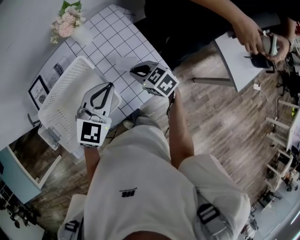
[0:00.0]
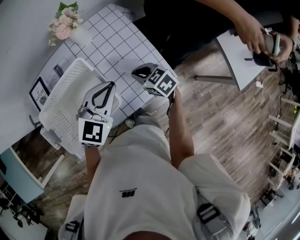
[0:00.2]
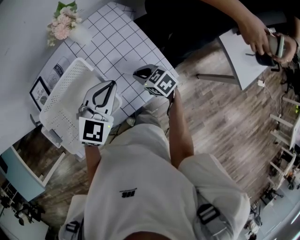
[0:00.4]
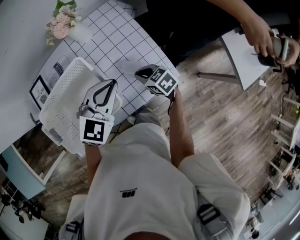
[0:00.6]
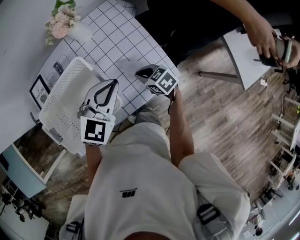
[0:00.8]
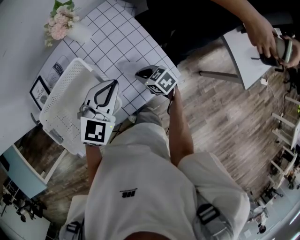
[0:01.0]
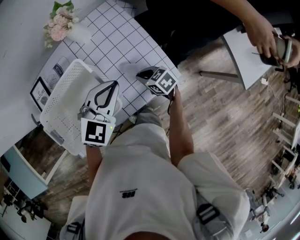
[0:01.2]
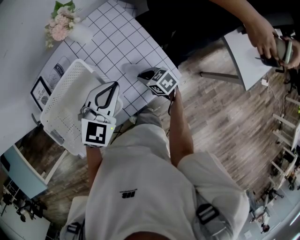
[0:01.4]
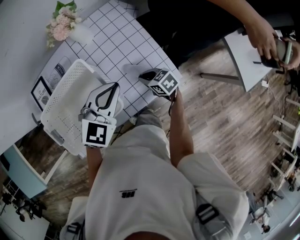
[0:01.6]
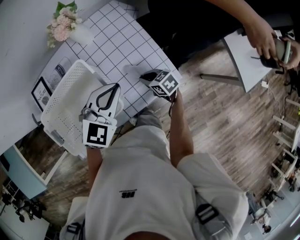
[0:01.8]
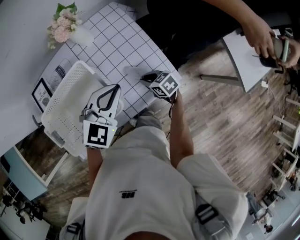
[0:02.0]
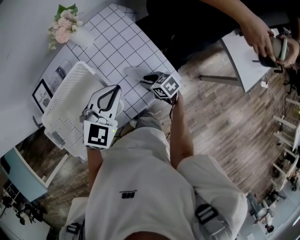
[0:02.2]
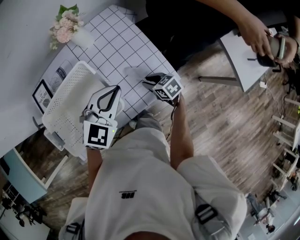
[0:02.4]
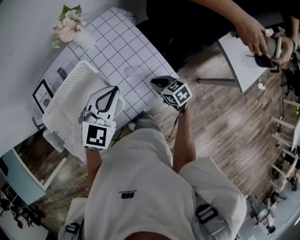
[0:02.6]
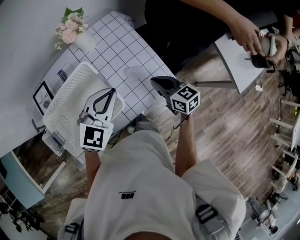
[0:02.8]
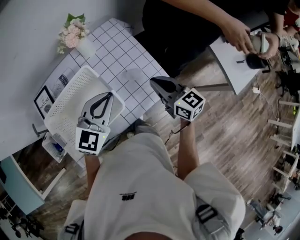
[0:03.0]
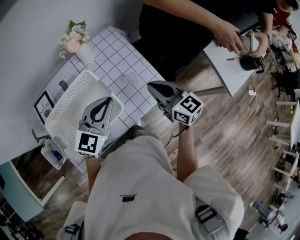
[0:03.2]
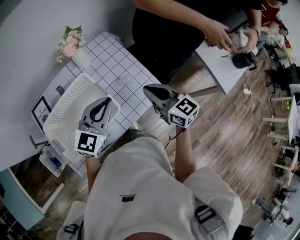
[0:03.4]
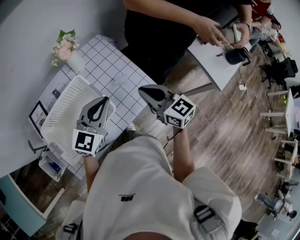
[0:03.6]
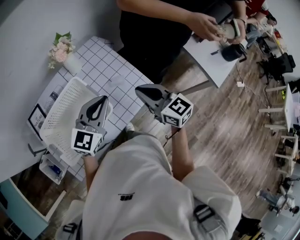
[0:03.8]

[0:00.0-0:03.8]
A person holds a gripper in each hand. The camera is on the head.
0:00.0 to 0:01.2: The right gripper shifts roughly 10 cm downward.
0:01.2 to 0:02.6: The right gripper shifts by roughly 5 cm.
0:02.6 to 0:03.8: The left gripper goes roughly 5 cm upward, and swivels roughly 20 degrees; the right gripper moves upward, roughly 25 cm, and angles its fingers upward, by roughly 30 degrees.

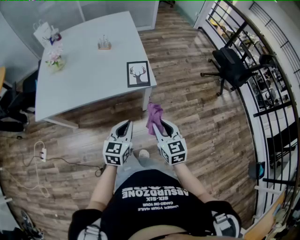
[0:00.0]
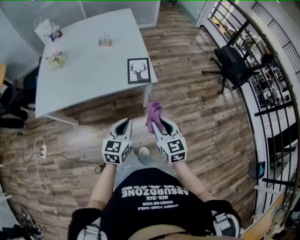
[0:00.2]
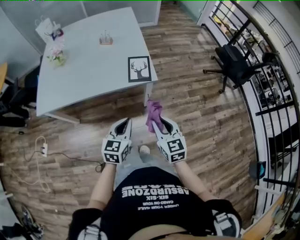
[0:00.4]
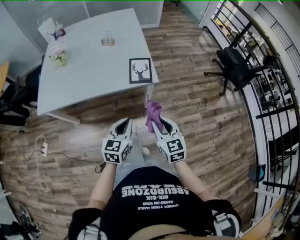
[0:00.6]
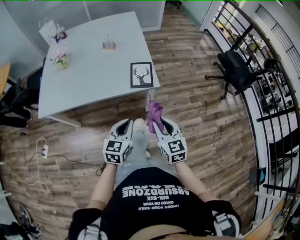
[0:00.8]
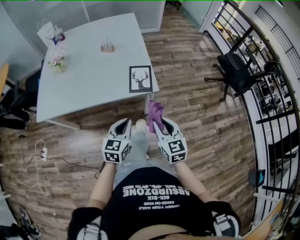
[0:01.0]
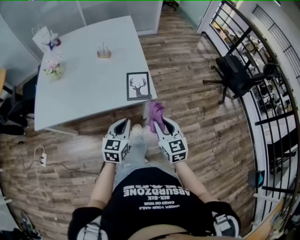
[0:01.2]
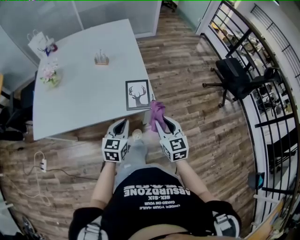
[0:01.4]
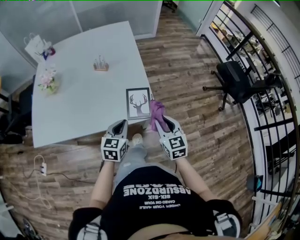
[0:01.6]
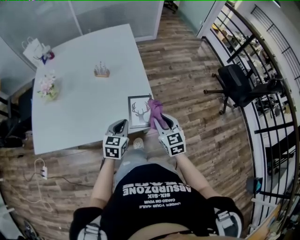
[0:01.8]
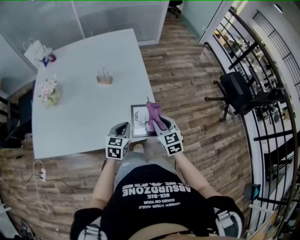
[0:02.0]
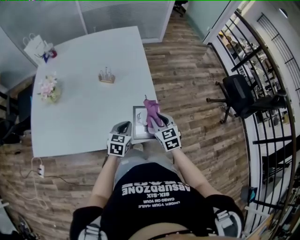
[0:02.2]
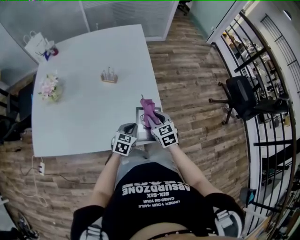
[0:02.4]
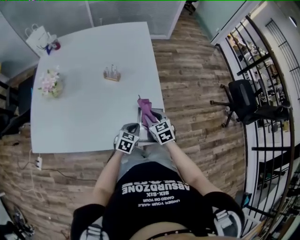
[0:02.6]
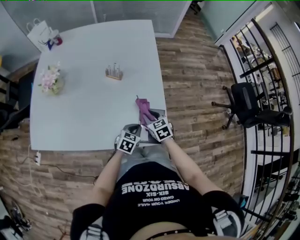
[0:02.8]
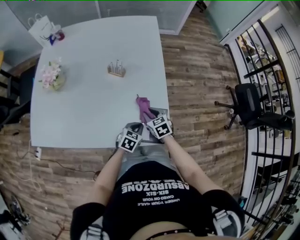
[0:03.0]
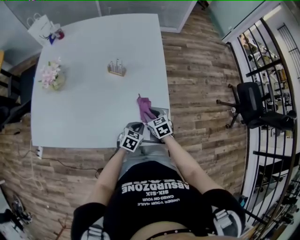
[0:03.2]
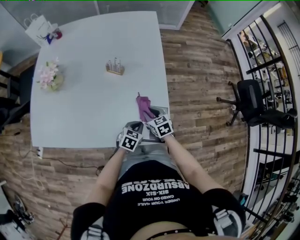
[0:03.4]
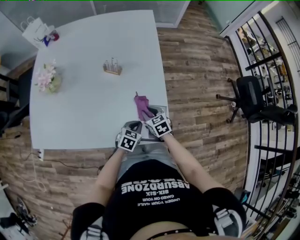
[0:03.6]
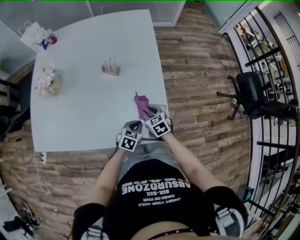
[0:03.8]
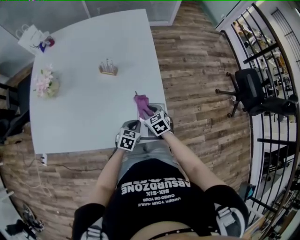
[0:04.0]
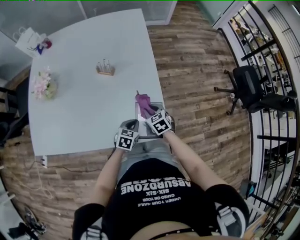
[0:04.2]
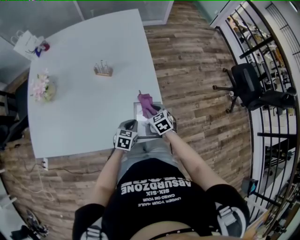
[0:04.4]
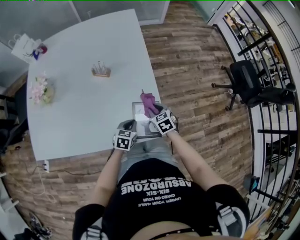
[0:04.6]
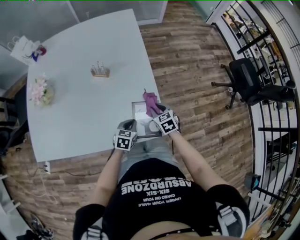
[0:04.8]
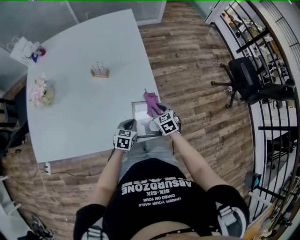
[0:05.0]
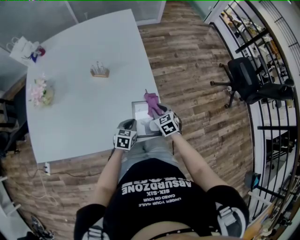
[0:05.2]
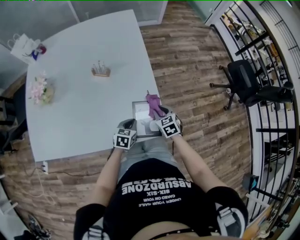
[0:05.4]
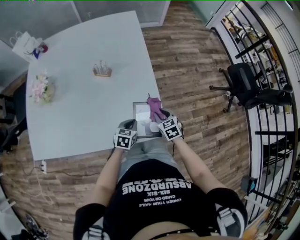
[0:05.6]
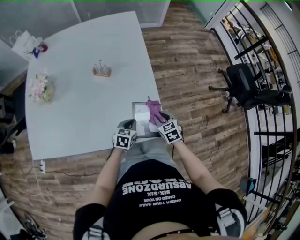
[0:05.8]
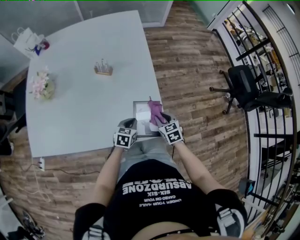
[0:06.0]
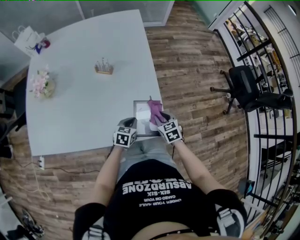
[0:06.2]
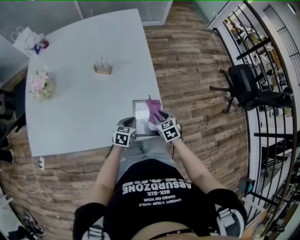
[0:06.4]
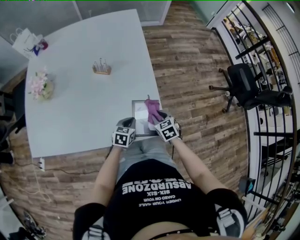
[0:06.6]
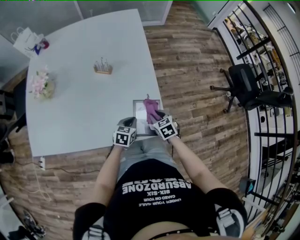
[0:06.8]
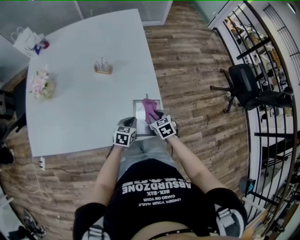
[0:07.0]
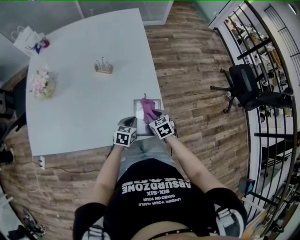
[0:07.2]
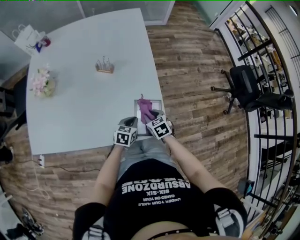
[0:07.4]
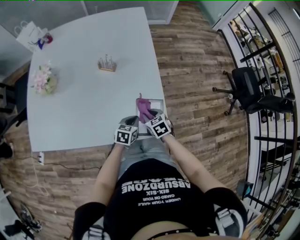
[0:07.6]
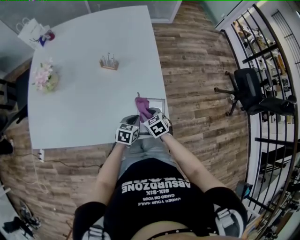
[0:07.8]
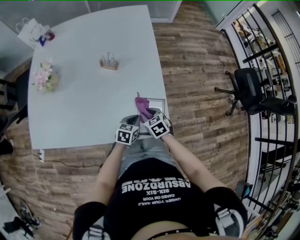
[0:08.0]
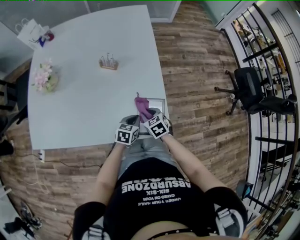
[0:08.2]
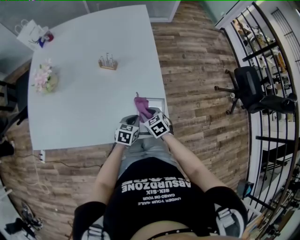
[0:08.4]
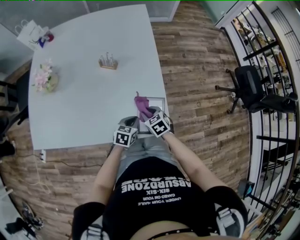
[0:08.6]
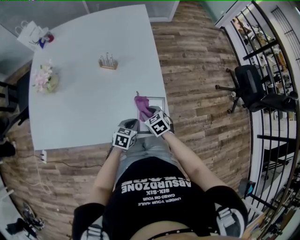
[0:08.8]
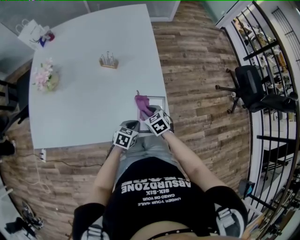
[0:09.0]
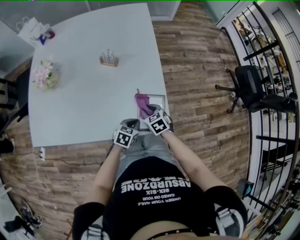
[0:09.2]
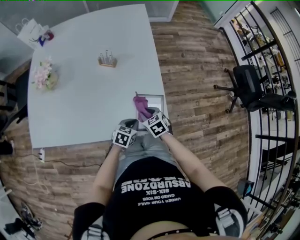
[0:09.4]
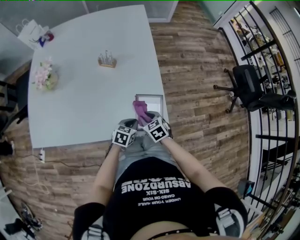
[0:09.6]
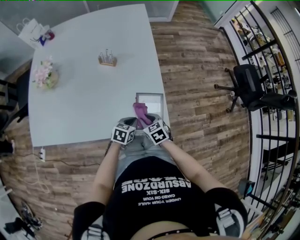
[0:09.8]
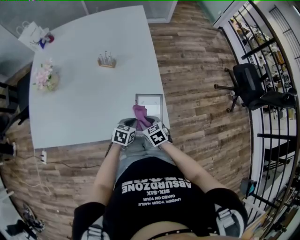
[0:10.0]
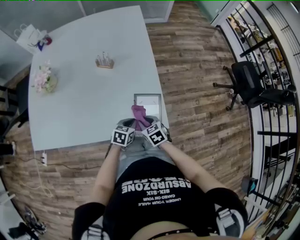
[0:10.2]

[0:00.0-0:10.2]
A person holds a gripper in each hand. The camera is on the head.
0:00.0 to 0:01.4: The two grippers go some 15 cm forward.
0:01.4 to 0:03.0: The left gripper is displaced forward and downward by some 25 cm, and rotates some 20 degrees. Meanwhile the right gripper is displaced forward, downward and to the left by roughly 35 cm, and rotates about 30 degrees.
0:03.0 to 0:04.4: The right gripper heads to the right, covering roughly 5 cm.
0:04.4 to 0:05.8: The right gripper moves to the right, approximately 5 cm.
0:05.8 to 0:07.2: The grippers move only a little.
0:07.2 to 0:08.8: The right gripper travels to the left by some 5 cm.
0:08.8 to 0:10.2: The right gripper travels backward by roughly 5 cm.

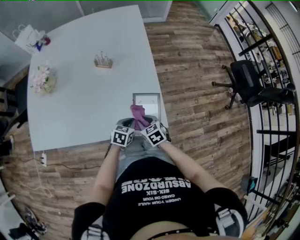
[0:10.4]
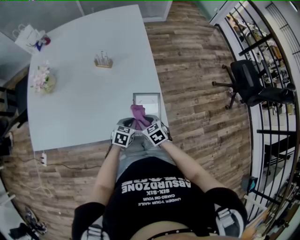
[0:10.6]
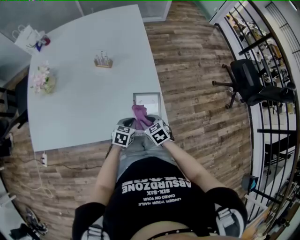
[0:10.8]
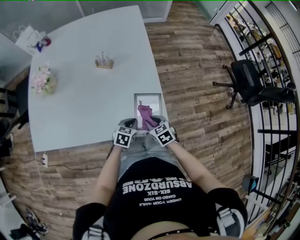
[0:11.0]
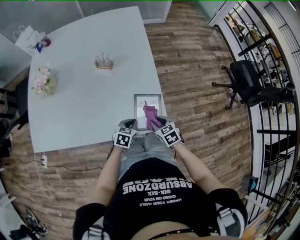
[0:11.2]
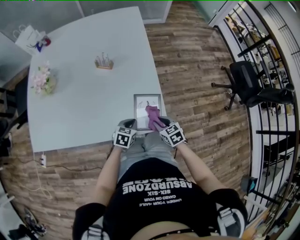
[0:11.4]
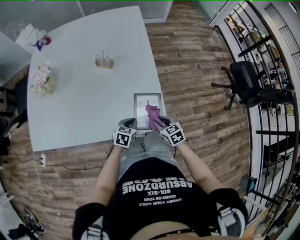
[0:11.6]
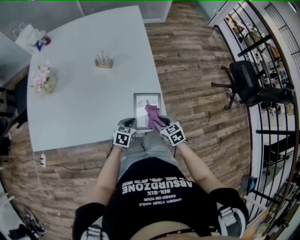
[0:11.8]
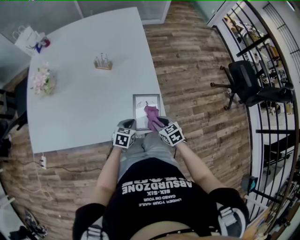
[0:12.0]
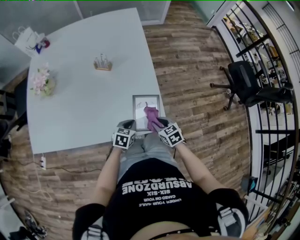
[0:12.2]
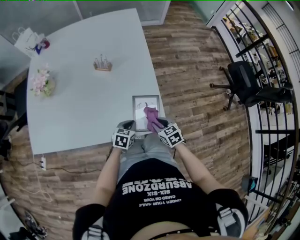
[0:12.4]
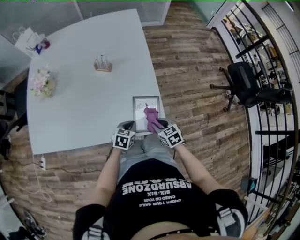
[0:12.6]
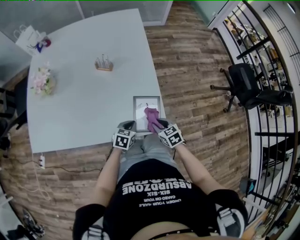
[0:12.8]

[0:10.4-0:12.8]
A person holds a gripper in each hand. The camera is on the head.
0:10.4 to 0:11.6: The right gripper heads to the right, covering roughly 10 cm.
0:11.6 to 0:12.8: Neither gripper changes place.

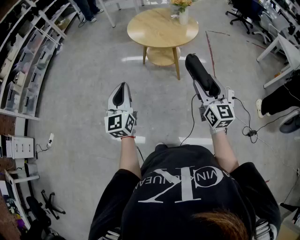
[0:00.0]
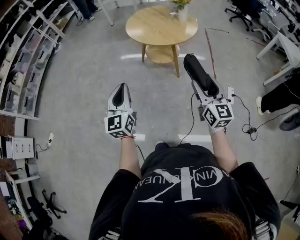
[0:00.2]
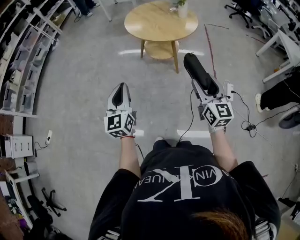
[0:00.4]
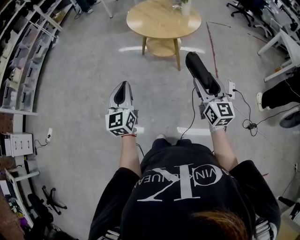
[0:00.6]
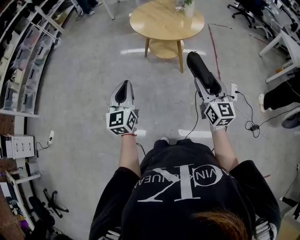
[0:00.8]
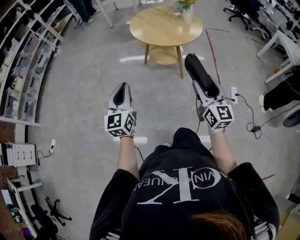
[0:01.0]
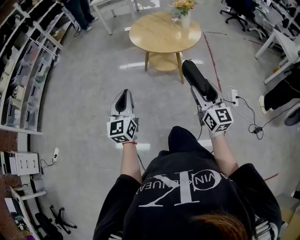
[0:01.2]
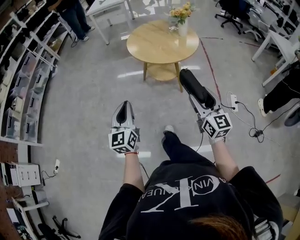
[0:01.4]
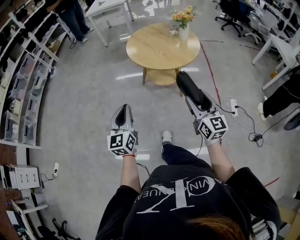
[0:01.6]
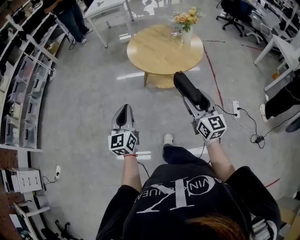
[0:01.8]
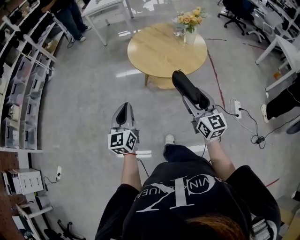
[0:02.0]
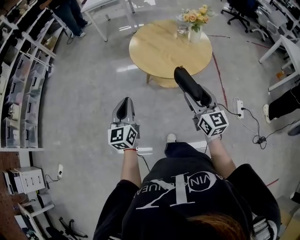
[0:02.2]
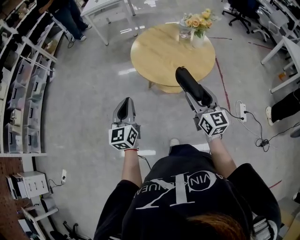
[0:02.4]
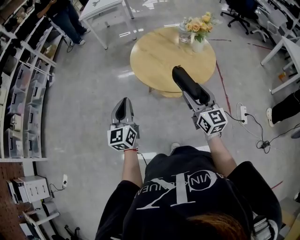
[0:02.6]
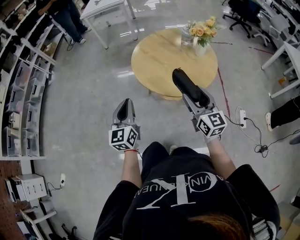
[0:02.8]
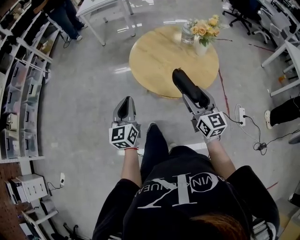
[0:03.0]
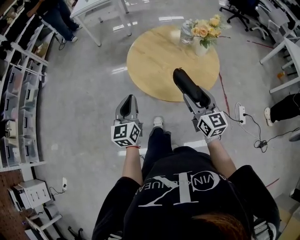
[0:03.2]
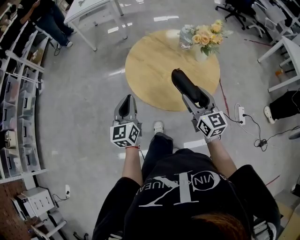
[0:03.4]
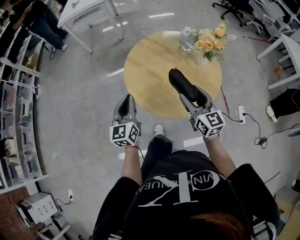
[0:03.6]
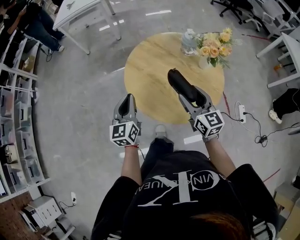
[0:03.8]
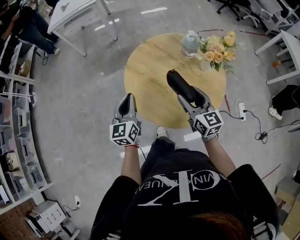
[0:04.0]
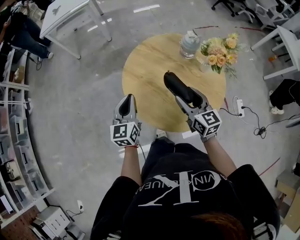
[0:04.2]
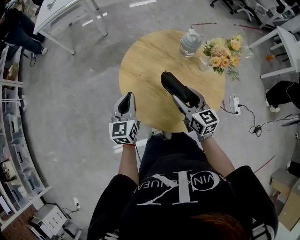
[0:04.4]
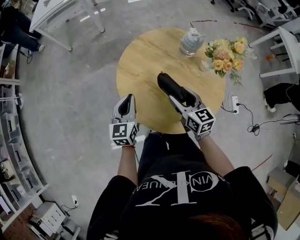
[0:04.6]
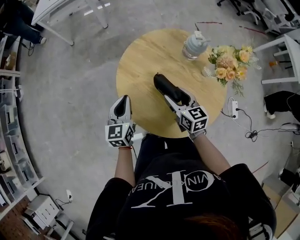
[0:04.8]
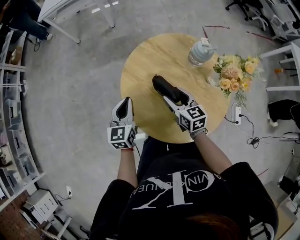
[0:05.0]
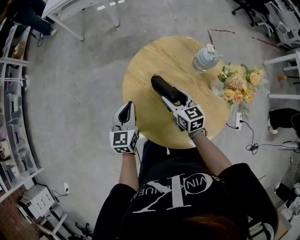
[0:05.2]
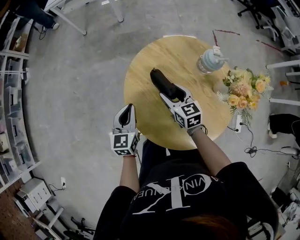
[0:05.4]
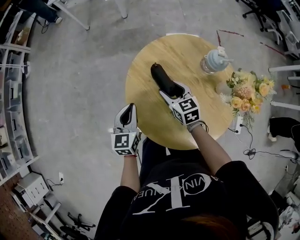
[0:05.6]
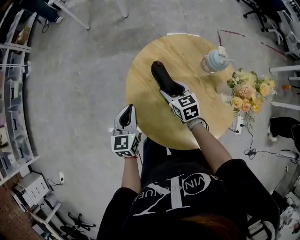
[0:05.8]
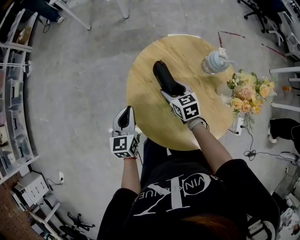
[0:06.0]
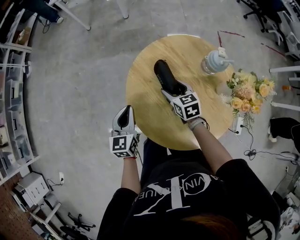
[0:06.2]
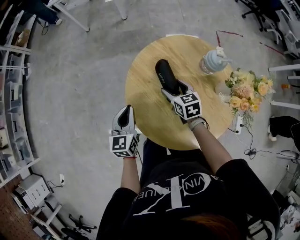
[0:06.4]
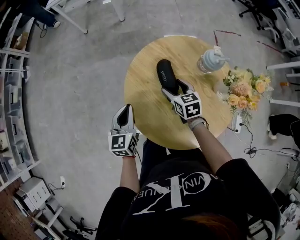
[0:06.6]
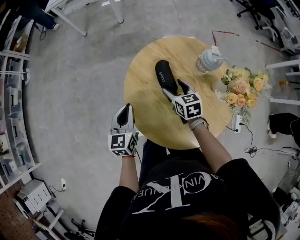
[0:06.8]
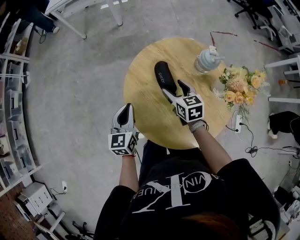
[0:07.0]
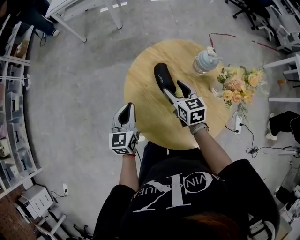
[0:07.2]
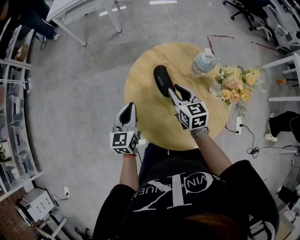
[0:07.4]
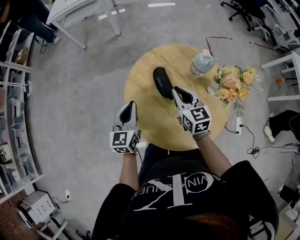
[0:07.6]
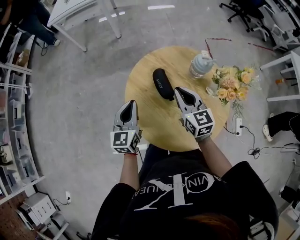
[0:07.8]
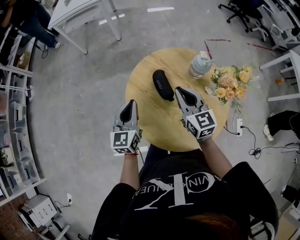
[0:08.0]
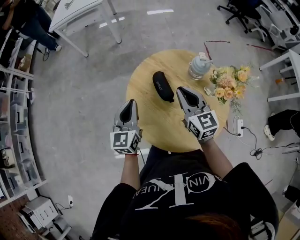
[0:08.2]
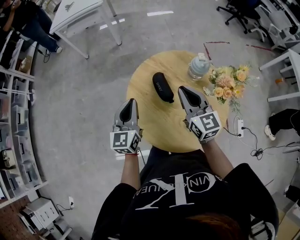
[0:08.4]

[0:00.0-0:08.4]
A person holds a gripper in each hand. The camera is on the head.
0:00.0 to 0:01.4: Both grippers travel together to the left and forward, roughly 10 cm.
0:01.4 to 0:02.8: Both grippers move forward, approximately 30 cm.
0:02.8 to 0:04.2: Both grippers move forward, roughly 30 cm.
0:04.2 to 0:05.6: The right gripper shifts approximately 20 cm forward, downward and to the left, and turns by about 30 degrees. Meanwhile the left gripper heads downward, covering some 10 cm.
0:05.6 to 0:07.0: The grippers stay close to where they were, moving slightly.
0:07.0 to 0:08.4: The right gripper is displaced upward by some 15 cm, turns by about 30 degrees, and closes its fingers. Meanwhile the left gripper goes about 10 cm upward.
